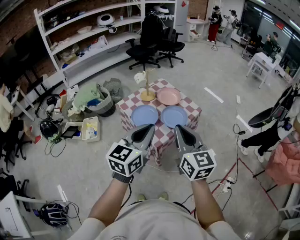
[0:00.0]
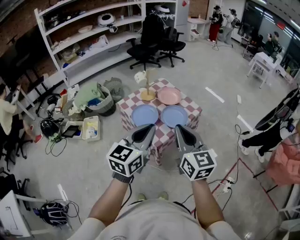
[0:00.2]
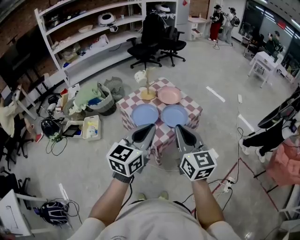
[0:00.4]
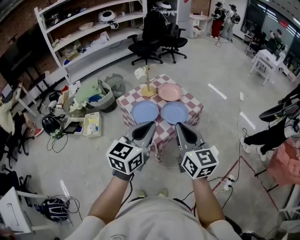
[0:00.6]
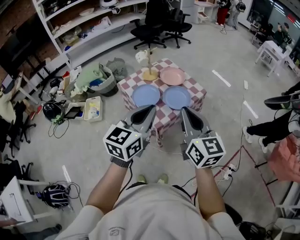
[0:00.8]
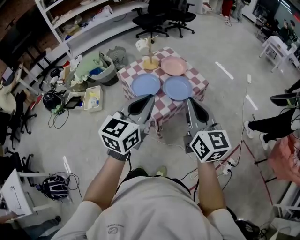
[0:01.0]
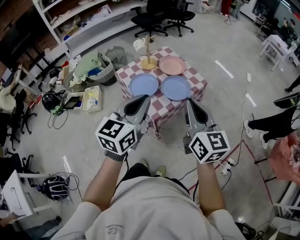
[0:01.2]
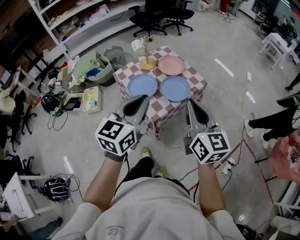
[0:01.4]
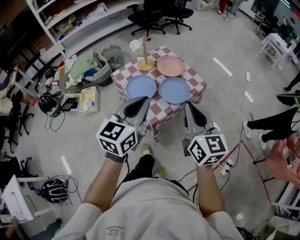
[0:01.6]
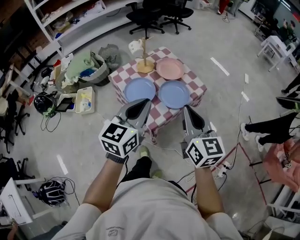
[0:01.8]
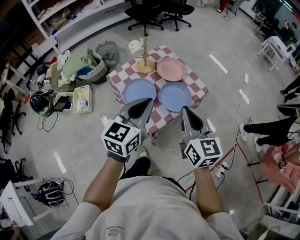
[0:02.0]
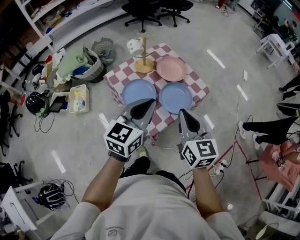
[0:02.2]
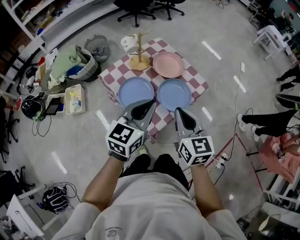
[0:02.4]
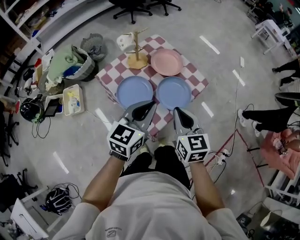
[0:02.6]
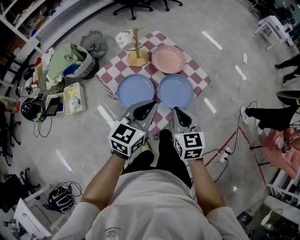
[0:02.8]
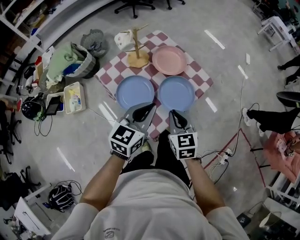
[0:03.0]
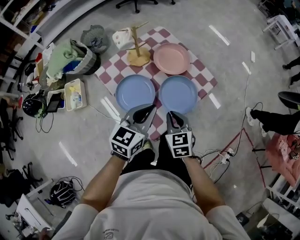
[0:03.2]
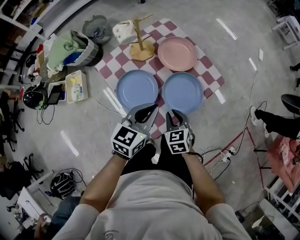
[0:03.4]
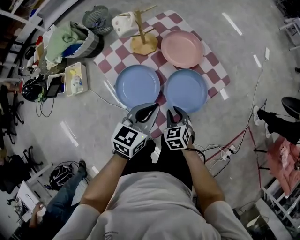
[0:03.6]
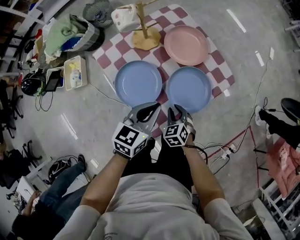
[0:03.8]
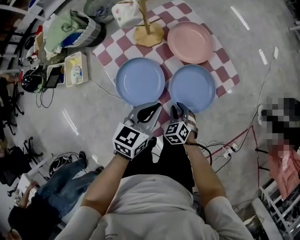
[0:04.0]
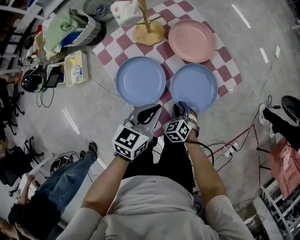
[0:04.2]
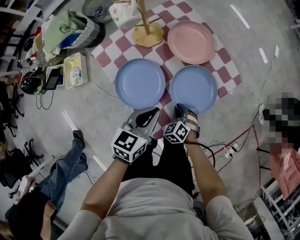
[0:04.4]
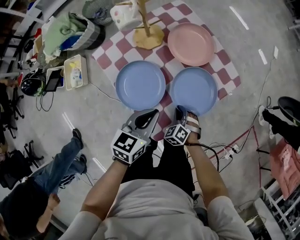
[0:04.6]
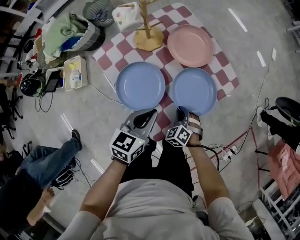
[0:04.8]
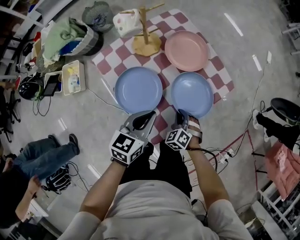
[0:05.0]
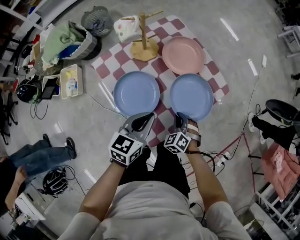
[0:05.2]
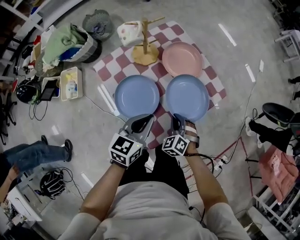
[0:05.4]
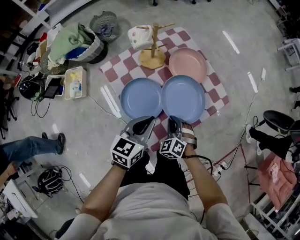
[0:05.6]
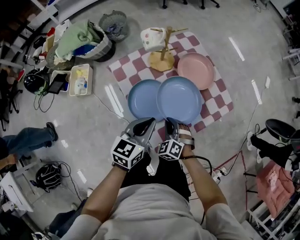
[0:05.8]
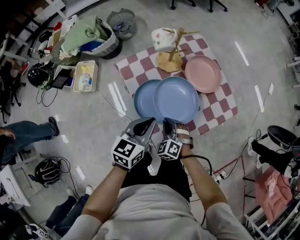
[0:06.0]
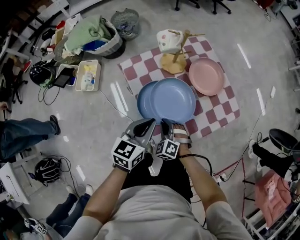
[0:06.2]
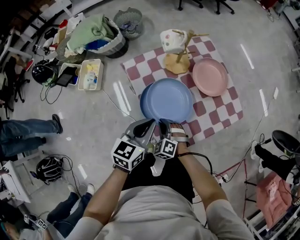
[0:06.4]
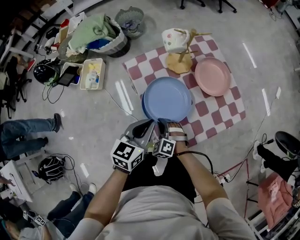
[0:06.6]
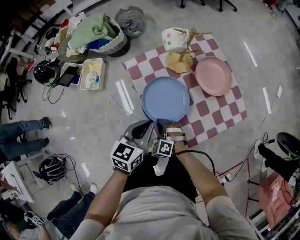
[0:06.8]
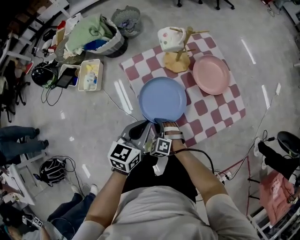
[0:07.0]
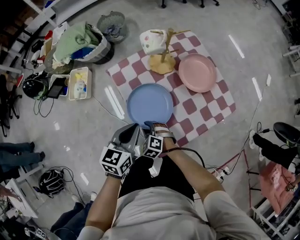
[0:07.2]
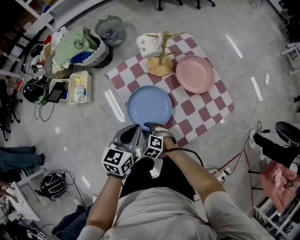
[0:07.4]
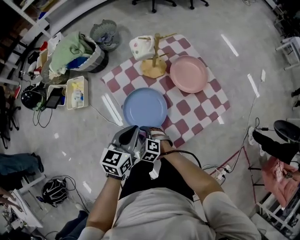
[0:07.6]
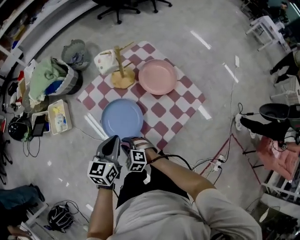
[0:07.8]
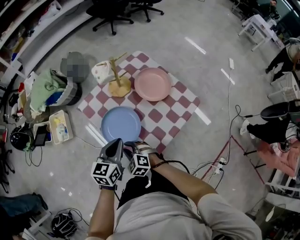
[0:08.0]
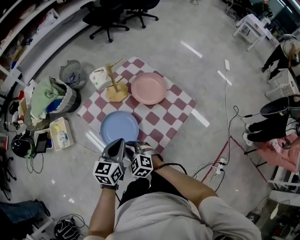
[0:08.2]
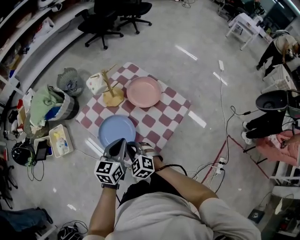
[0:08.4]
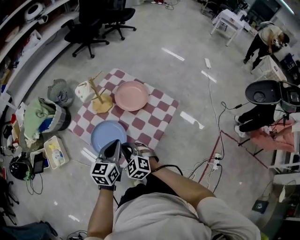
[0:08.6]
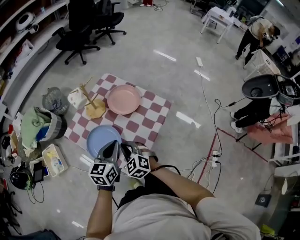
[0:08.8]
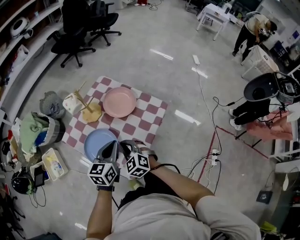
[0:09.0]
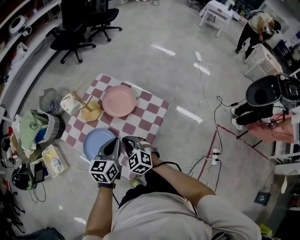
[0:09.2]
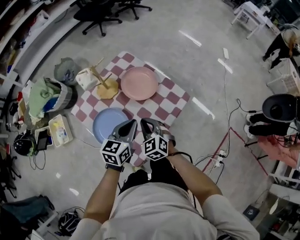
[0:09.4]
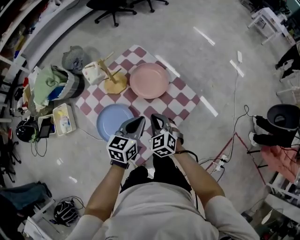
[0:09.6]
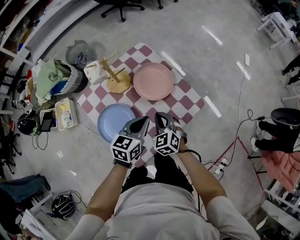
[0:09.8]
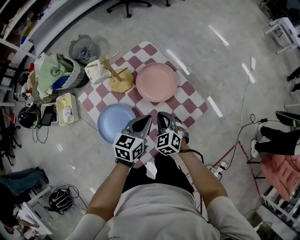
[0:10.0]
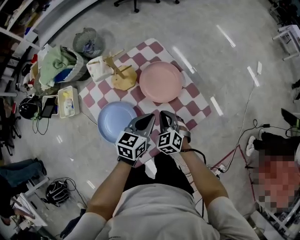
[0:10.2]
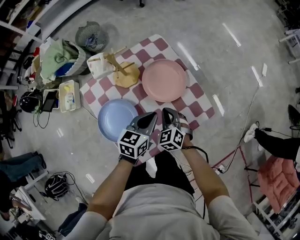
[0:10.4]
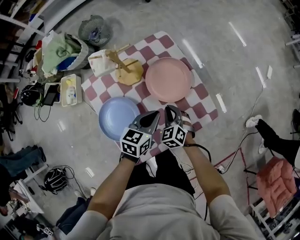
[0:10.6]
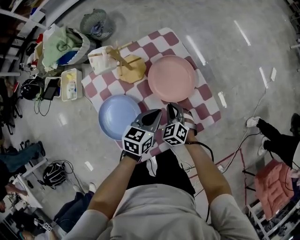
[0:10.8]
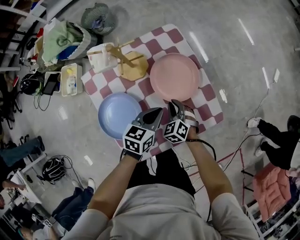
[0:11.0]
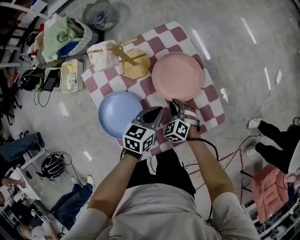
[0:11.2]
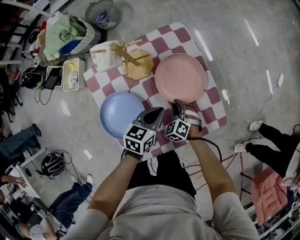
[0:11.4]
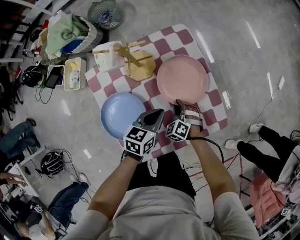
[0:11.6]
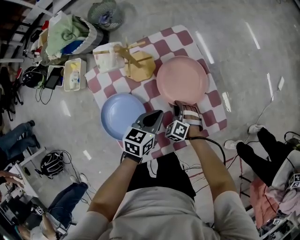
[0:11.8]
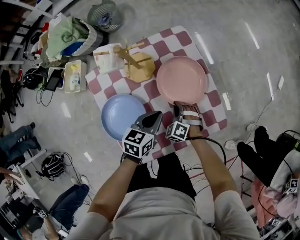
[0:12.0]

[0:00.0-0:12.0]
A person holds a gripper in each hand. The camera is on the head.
0:00.0 to 0:01.6: The left gripper shifts approximately 10 cm forward; the right gripper shifts roughly 10 cm forward and to the right.
0:01.6 to 0:03.0: The left gripper is displaced forward and downward by roughly 25 cm. Meanwhile the right gripper is displaced downward, forward and to the left by about 30 cm, and changes its angle by approximately 30 degrees.
0:03.0 to 0:04.4: The left gripper is displaced downward by approximately 15 cm. The right gripper travels downward by some 30 cm, and changes its angle by some 50 degrees.
0:04.4 to 0:06.0: The right gripper goes roughly 15 cm to the left and upward, and turns by about 30 degrees. The left gripper moves to the left, about 10 cm.
0:06.0 to 0:07.6: The right gripper shifts roughly 10 cm to the left and downward, turns by some 20 degrees, and opens up.
0:07.6 to 0:09.0: The left gripper ends up about 15 cm from where it was. The right gripper heads upward, covering some 20 cm, changes its angle by approximately 40 degrees, and closes up.
0:09.0 to 0:10.4: The right gripper goes roughly 20 cm forward, downward and to the right, while the left gripper shifts approximately 15 cm forward and downward.
0:10.4 to 0:12.0: The left gripper shifts approximately 5 cm downward, while the right gripper heads downward, covering approximately 10 cm, and swivels some 30 degrees.

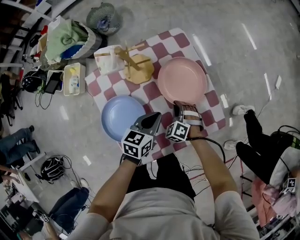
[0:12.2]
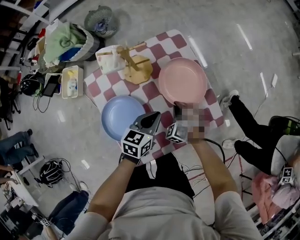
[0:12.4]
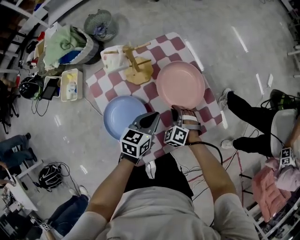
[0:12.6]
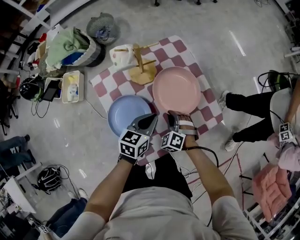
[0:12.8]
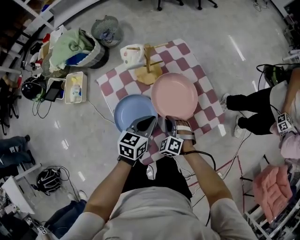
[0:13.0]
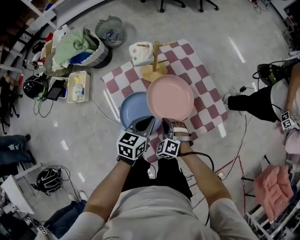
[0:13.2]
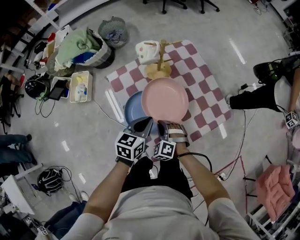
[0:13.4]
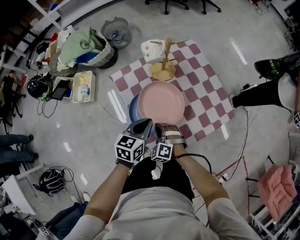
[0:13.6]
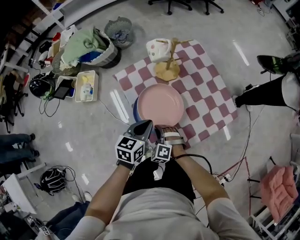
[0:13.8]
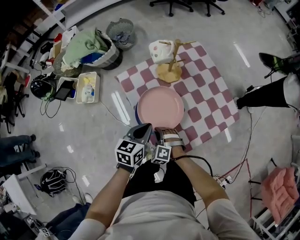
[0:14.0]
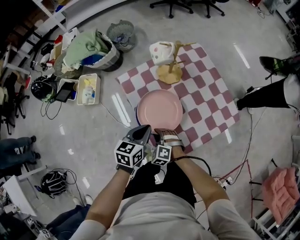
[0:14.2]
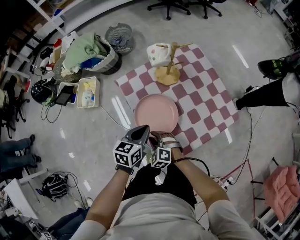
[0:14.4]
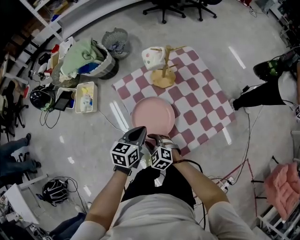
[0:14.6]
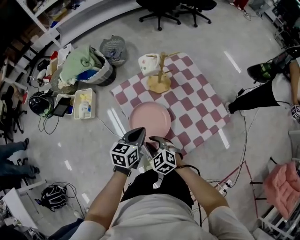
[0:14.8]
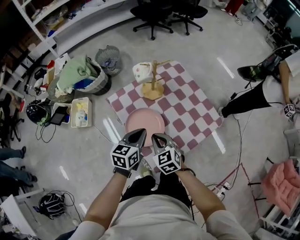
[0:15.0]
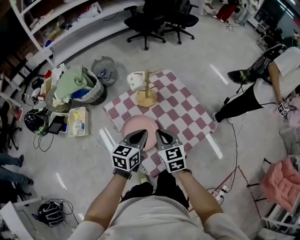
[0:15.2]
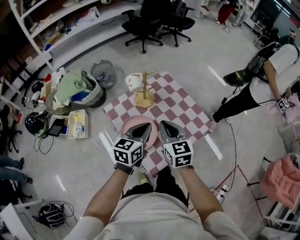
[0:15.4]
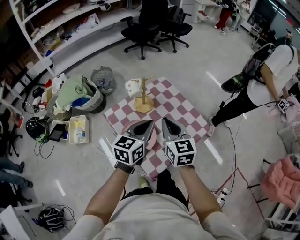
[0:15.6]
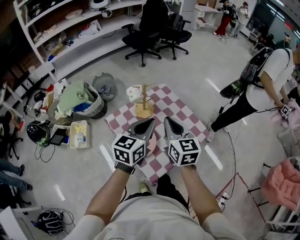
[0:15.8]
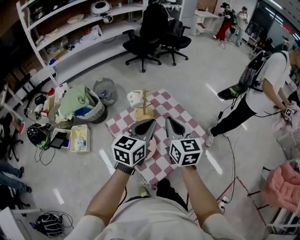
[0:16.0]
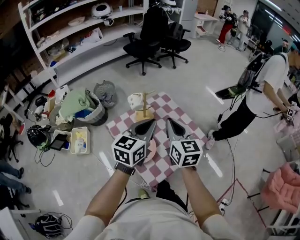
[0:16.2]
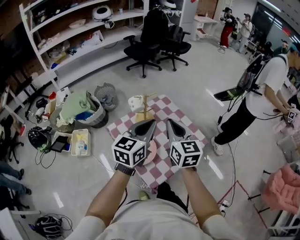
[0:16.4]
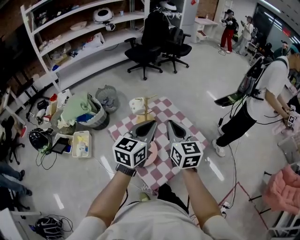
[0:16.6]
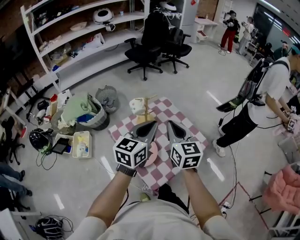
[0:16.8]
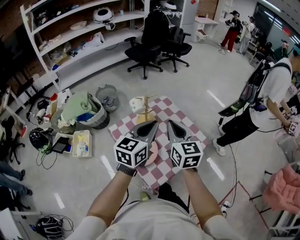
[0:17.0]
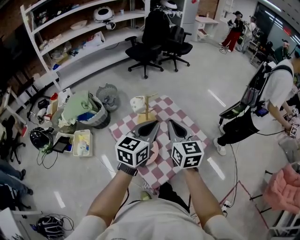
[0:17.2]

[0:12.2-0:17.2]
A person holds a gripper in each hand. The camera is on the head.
0:12.2 to 0:13.8: The left gripper goes about 25 cm to the left and backward, while the right gripper goes roughly 30 cm backward and to the left.
0:13.8 to 0:15.6: The left gripper shifts some 20 cm upward, and changes its angle by some 20 degrees. The right gripper travels upward by some 35 cm, rotates around the line of its fingers by approximately 60 degrees, clockwise from behind, and opens, then closes again.
0:15.6 to 0:17.2: Both grippers move upward, some 10 cm.

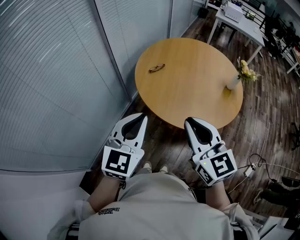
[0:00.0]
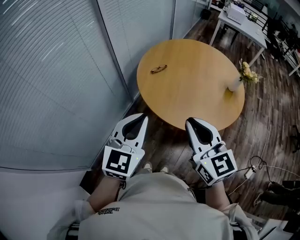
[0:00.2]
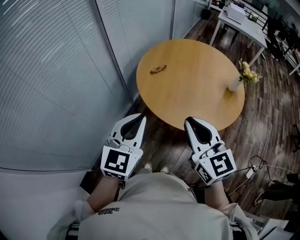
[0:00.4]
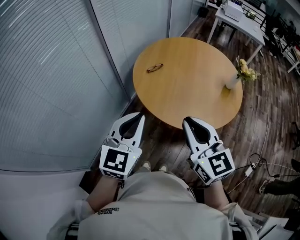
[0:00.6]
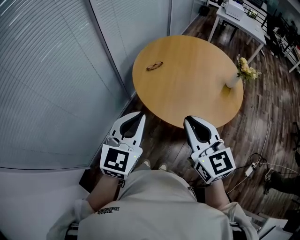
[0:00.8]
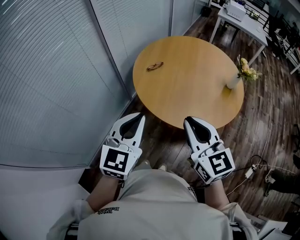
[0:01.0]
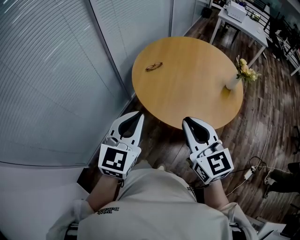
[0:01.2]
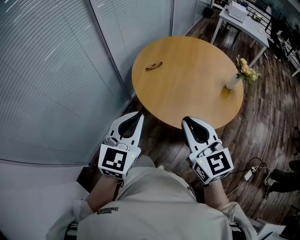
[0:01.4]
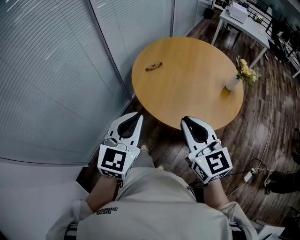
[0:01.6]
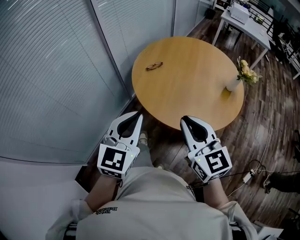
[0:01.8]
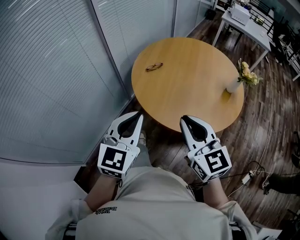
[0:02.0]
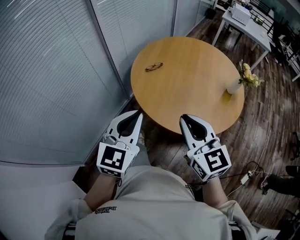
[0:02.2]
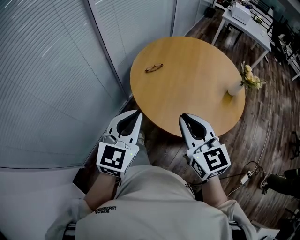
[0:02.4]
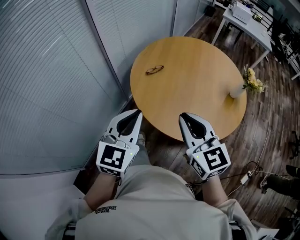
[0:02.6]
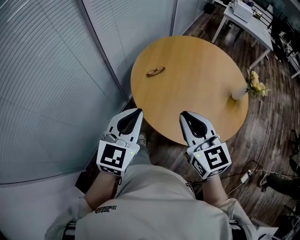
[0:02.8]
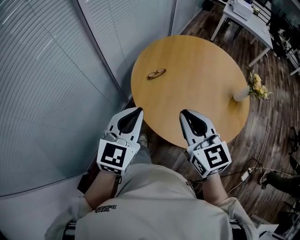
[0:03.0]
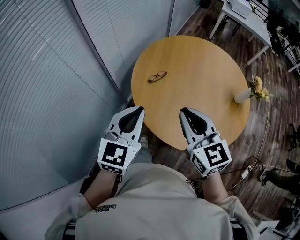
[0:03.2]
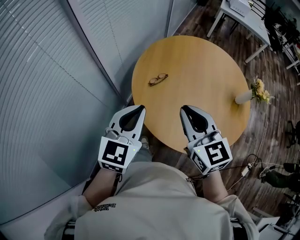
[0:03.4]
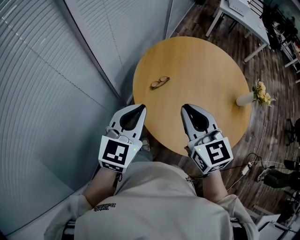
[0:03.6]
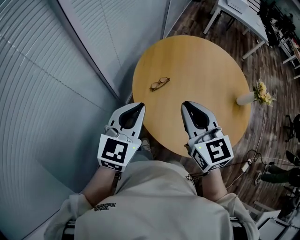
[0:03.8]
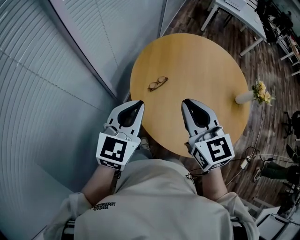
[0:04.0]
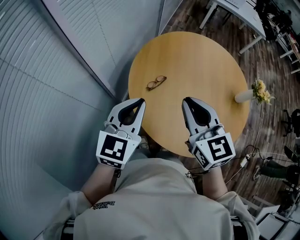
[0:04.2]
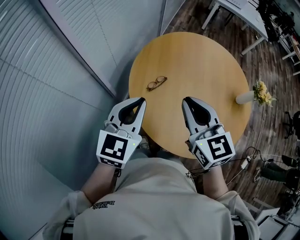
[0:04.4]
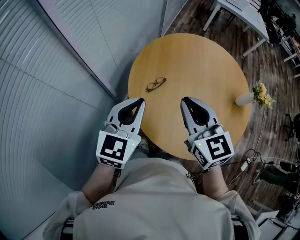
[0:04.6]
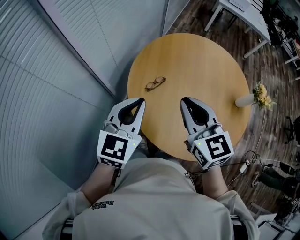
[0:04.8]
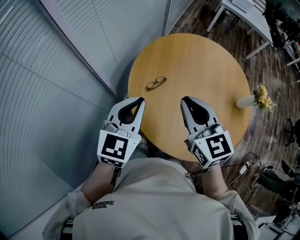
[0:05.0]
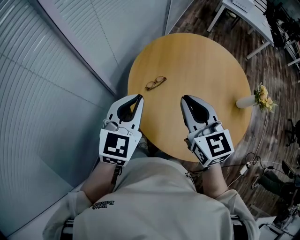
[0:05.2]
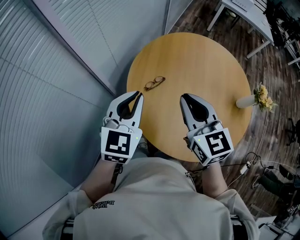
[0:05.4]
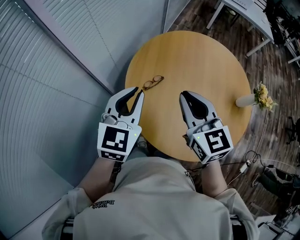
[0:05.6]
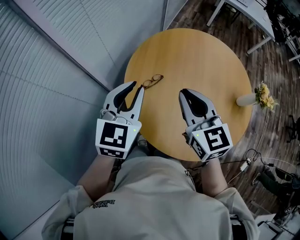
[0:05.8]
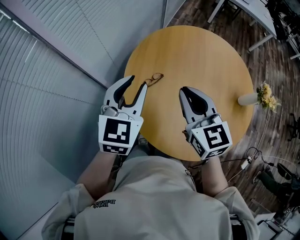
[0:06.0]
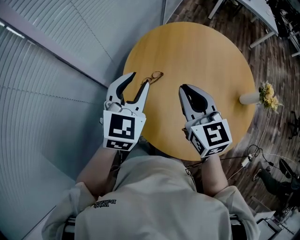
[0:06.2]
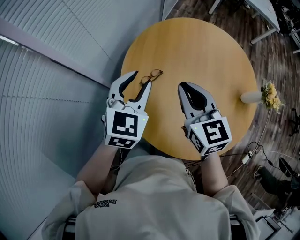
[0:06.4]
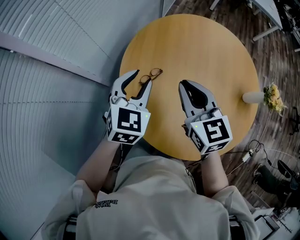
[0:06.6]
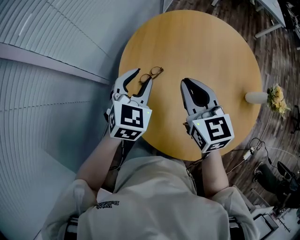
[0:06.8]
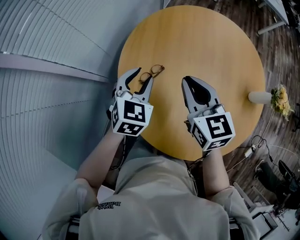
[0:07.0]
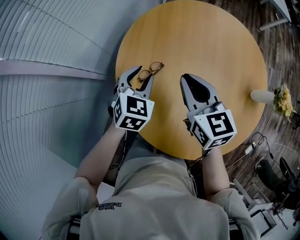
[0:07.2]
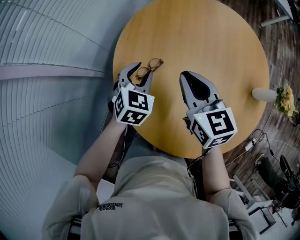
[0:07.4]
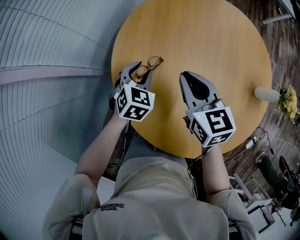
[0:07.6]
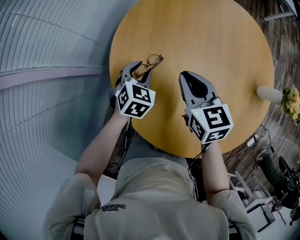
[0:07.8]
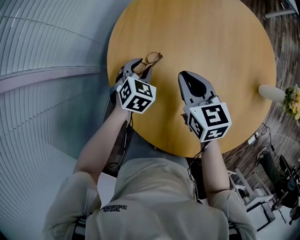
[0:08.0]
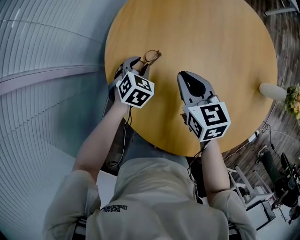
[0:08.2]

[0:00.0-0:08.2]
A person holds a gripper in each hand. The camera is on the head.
0:00.0 to 0:01.6: The right gripper is displaced to the right by approximately 5 cm; the left gripper moves roughly 5 cm.
0:01.6 to 0:03.2: Both grippers move forward, roughly 20 cm.
0:03.2 to 0:05.0: The grippers both shift forward by roughly 10 cm.
0:05.0 to 0:06.6: Both grippers travel together forward and downward, roughly 15 cm. The left gripper opens its fingers.
0:06.6 to 0:08.2: The left gripper shifts roughly 25 cm downward, and turns by some 30 degrees, while the right gripper is displaced downward by some 20 cm.
